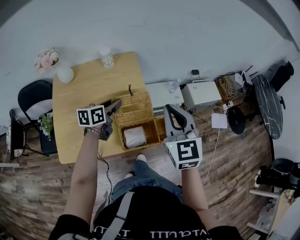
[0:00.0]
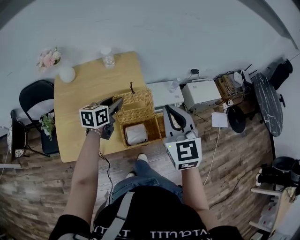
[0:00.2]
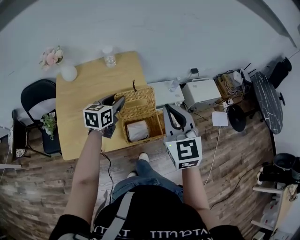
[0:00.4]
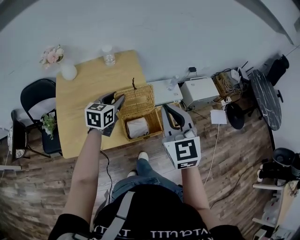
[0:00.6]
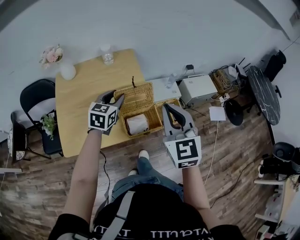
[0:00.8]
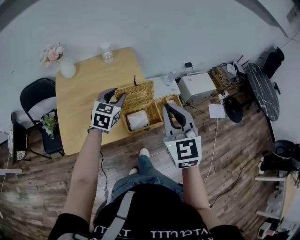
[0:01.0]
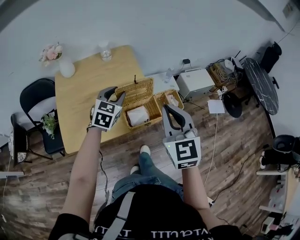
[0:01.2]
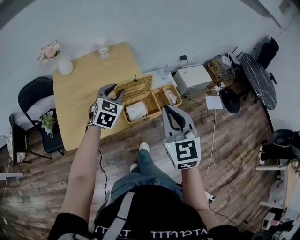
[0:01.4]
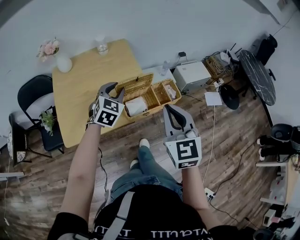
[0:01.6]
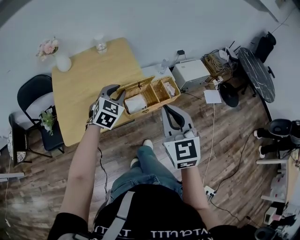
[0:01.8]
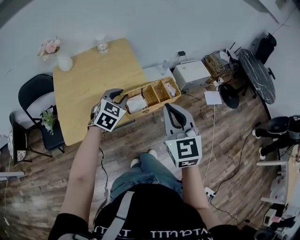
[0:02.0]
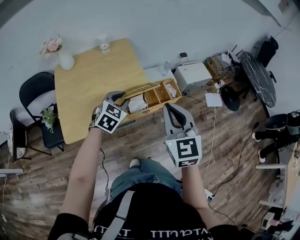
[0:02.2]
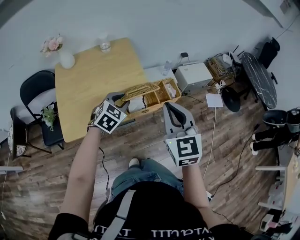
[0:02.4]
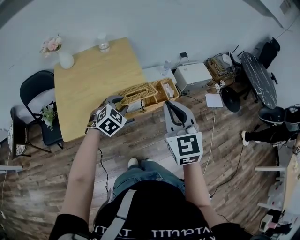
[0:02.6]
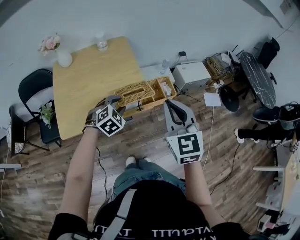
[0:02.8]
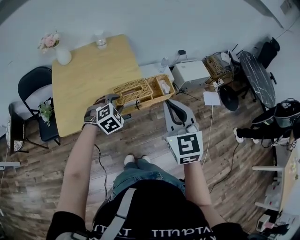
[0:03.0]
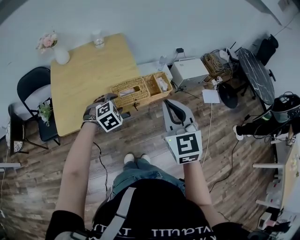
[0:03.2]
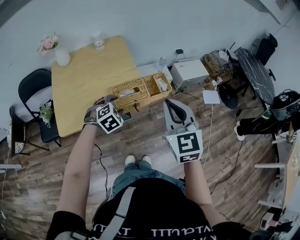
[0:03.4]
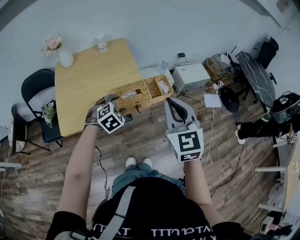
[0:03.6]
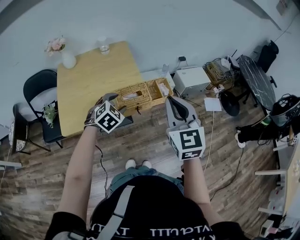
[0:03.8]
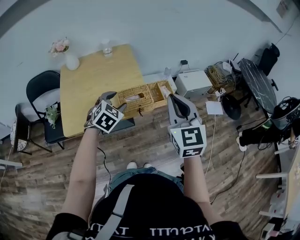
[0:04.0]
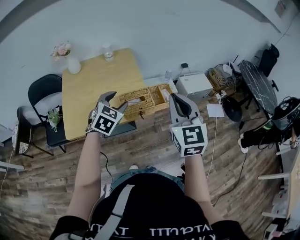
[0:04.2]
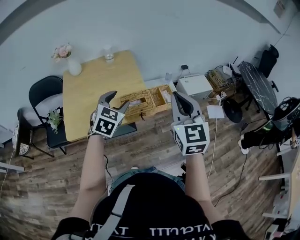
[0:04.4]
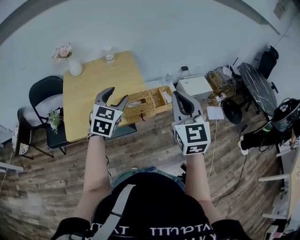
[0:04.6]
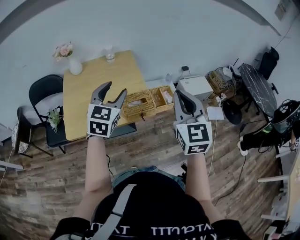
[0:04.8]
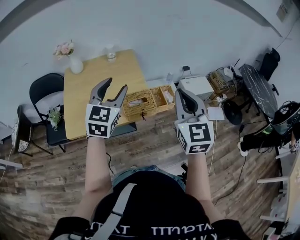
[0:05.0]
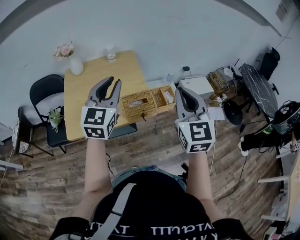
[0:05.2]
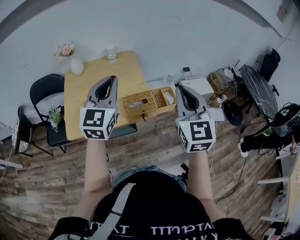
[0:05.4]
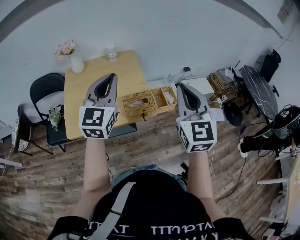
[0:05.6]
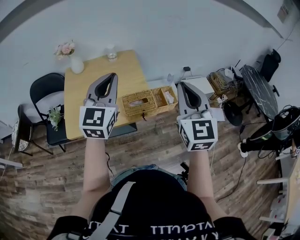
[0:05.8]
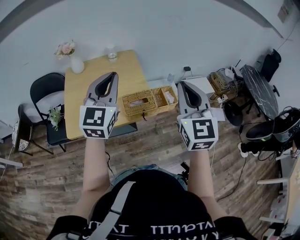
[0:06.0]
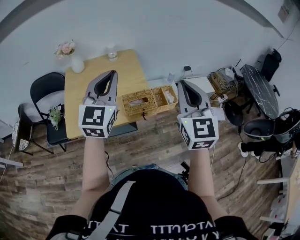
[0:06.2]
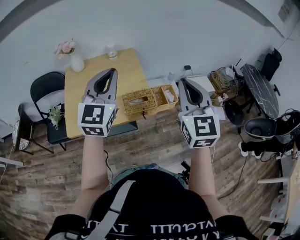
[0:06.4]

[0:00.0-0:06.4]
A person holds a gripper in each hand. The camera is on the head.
0.0 to 1.6 s: The left gripper heads backward and upward, covering about 15 cm, and rolls clockwise, seen from behind, by approximately 60 degrees; the right gripper heads backward, covering some 20 cm.
1.6 to 3.2 s: The right gripper shifts by some 5 cm. The left gripper goes about 15 cm downward, backward and to the right, and swivels approximately 40 degrees.
3.2 to 4.8 s: The left gripper shifts some 25 cm upward, and points its fingers roughly 40 degrees further upward. Meanwhile the right gripper moves upward, some 5 cm.
4.8 to 6.4 s: The left gripper moves upward, approximately 10 cm, and closes up.

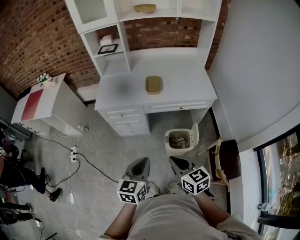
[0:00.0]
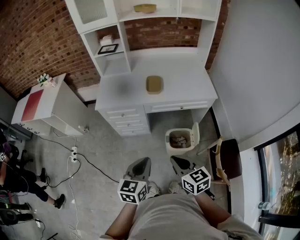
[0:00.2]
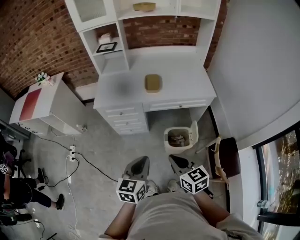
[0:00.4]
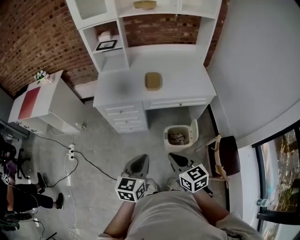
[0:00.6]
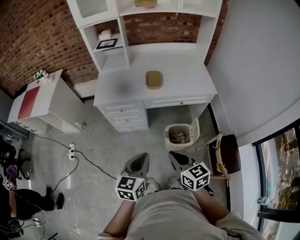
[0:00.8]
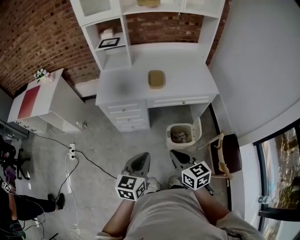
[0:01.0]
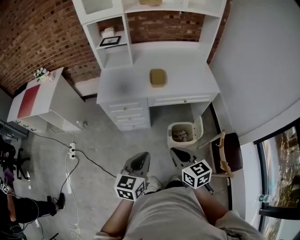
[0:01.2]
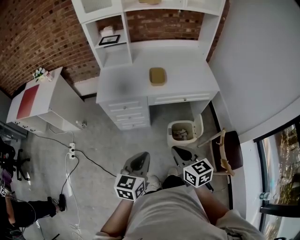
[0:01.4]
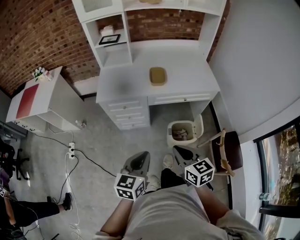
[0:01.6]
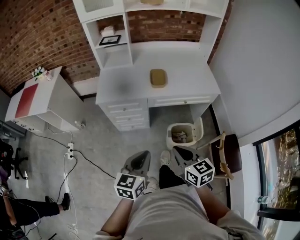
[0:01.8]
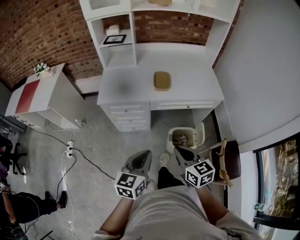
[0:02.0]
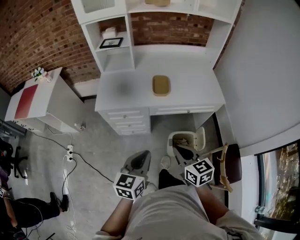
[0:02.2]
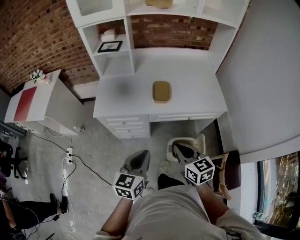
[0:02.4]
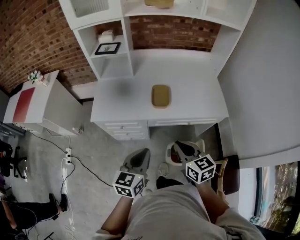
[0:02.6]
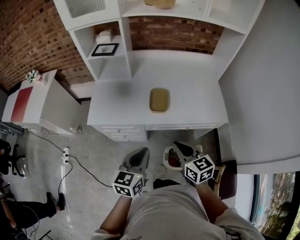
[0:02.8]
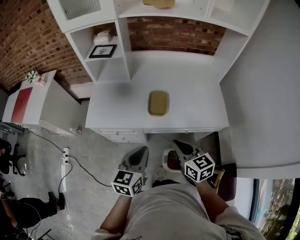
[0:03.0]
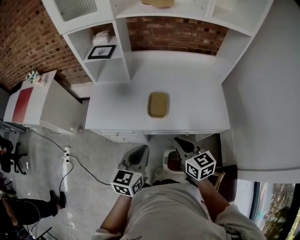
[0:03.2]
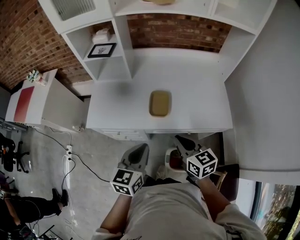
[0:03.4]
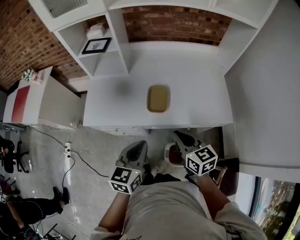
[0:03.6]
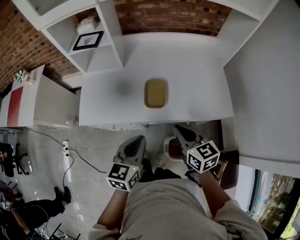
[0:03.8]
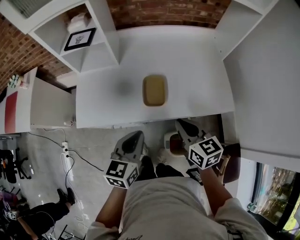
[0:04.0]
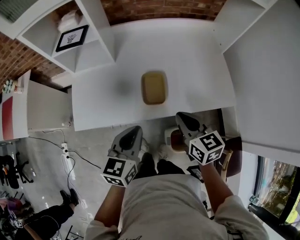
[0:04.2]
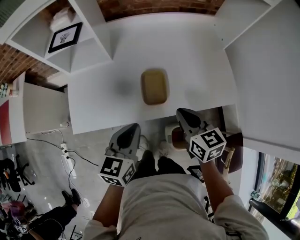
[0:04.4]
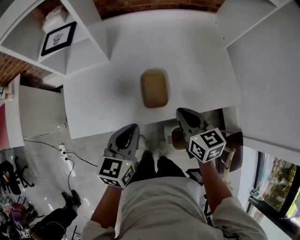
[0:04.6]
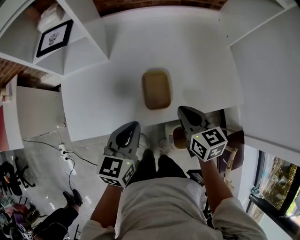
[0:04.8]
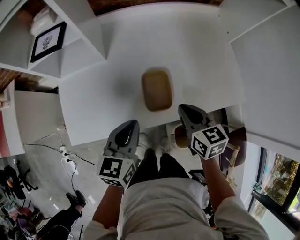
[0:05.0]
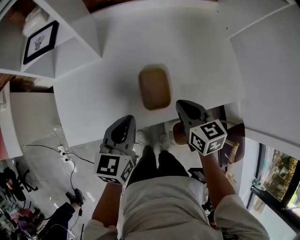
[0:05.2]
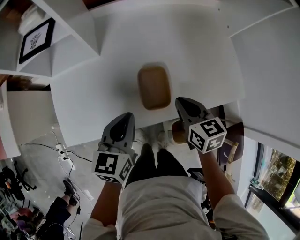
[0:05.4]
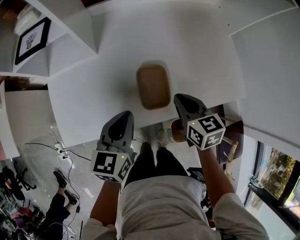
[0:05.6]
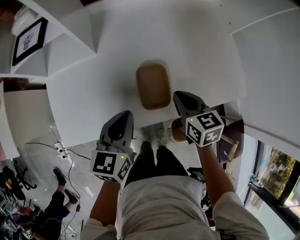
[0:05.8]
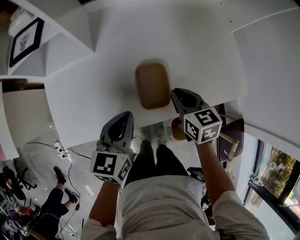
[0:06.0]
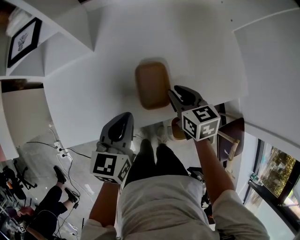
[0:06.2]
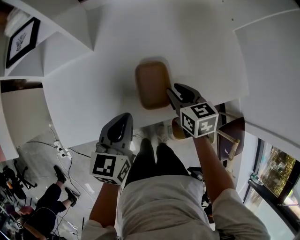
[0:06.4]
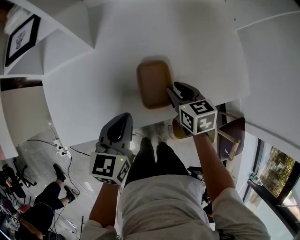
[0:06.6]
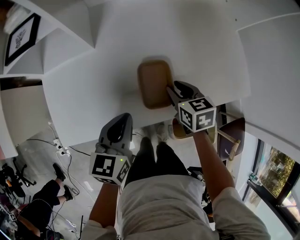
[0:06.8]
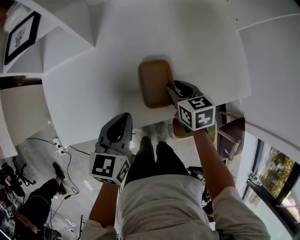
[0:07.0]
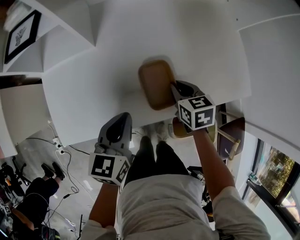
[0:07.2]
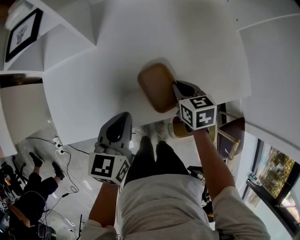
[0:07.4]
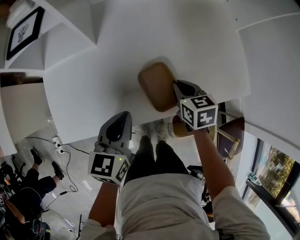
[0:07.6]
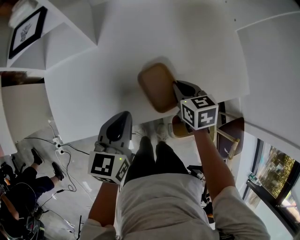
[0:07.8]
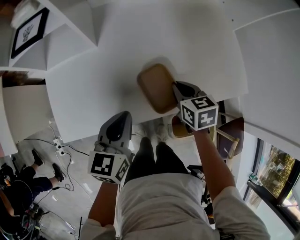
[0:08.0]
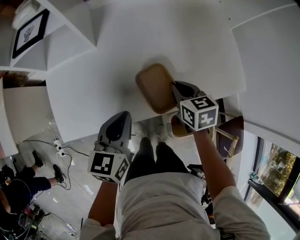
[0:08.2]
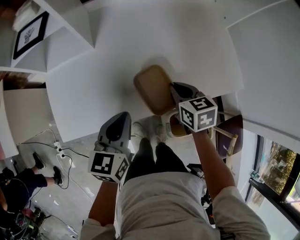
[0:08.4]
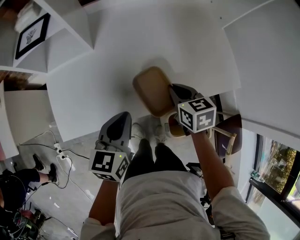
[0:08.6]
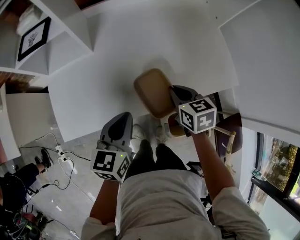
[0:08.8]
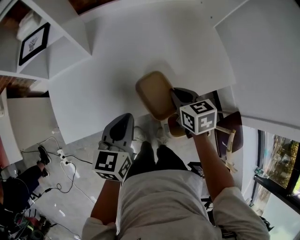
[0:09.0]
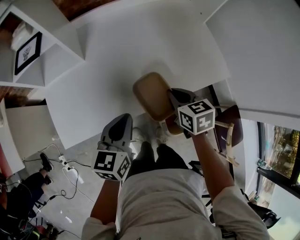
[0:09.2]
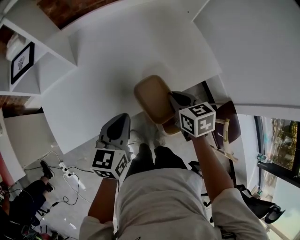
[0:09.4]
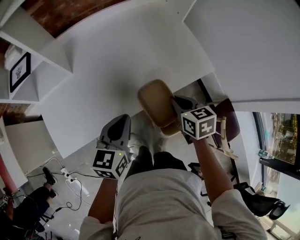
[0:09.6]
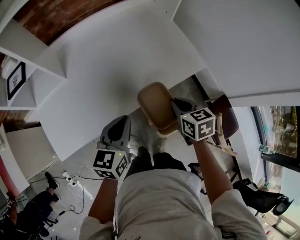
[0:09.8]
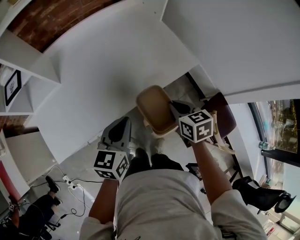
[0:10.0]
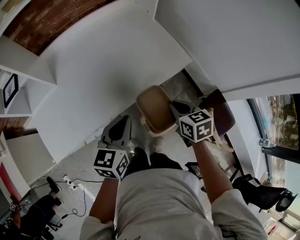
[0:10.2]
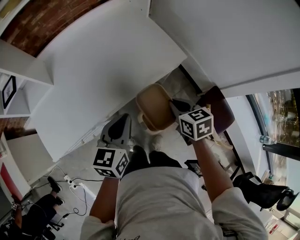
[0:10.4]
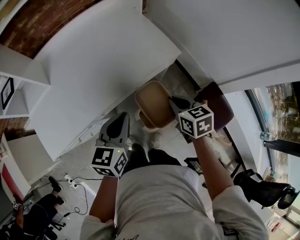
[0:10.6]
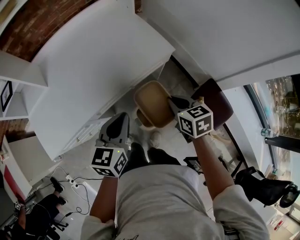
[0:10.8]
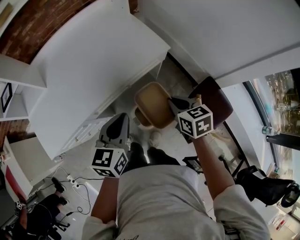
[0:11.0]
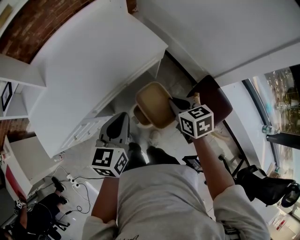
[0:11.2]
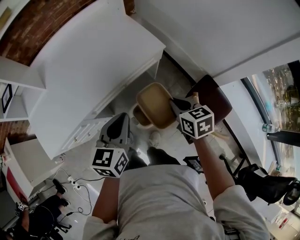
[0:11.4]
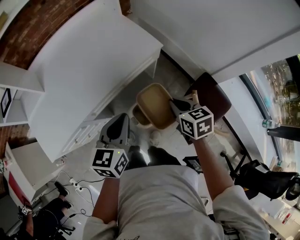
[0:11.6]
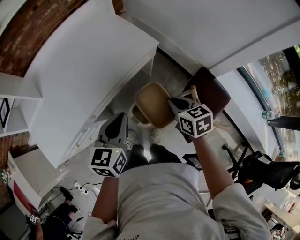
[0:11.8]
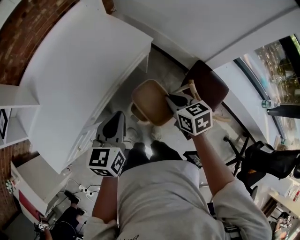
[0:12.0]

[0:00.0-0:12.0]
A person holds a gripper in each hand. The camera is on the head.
0.0 to 1.6 s: The left gripper travels to the left by about 5 cm. The right gripper ends up approximately 5 cm from where it was.
1.6 to 3.0 s: The grippers both shift forward by roughly 30 cm.
3.0 to 4.4 s: Both grippers move forward, some 15 cm.
4.4 to 6.0 s: The left gripper moves forward and downward, about 10 cm; the right gripper travels downward and forward by about 15 cm.
6.0 to 7.6 s: The right gripper opens and closes again.
7.6 to 9.0 s: The left gripper ends up roughly 5 cm from where it was. The right gripper shifts some 10 cm upward and backward.
9.0 to 10.4 s: The left gripper is displaced to the right by roughly 20 cm. Meanwhile the right gripper heads to the right and backward, covering roughly 25 cm.
10.4 to 12.0 s: The right gripper is displaced to the right and backward by about 10 cm, while the left gripper heads to the right, covering approximately 10 cm.

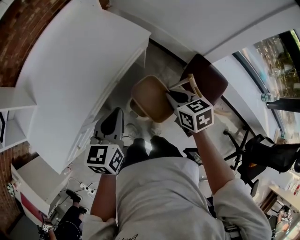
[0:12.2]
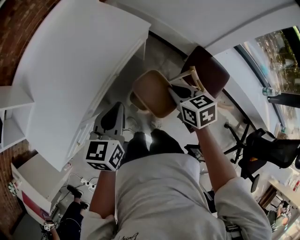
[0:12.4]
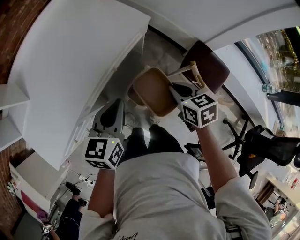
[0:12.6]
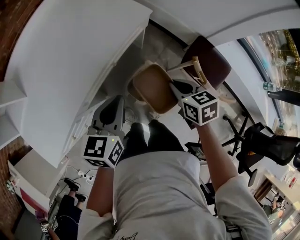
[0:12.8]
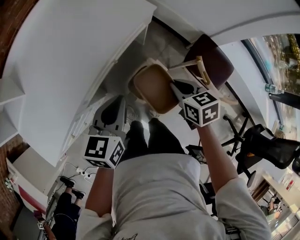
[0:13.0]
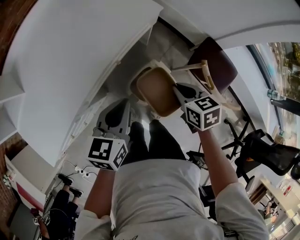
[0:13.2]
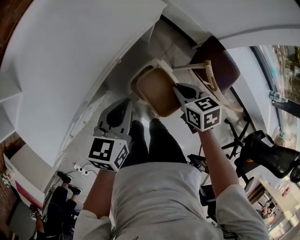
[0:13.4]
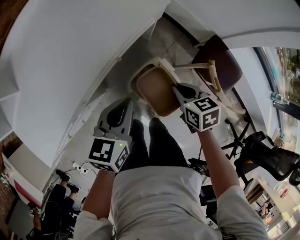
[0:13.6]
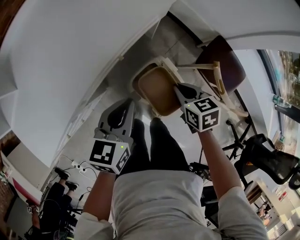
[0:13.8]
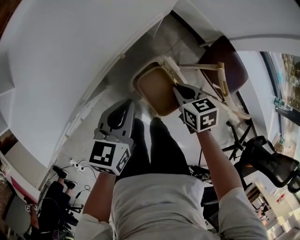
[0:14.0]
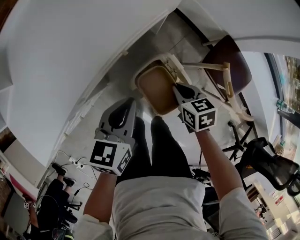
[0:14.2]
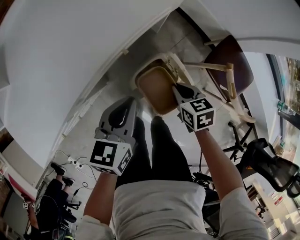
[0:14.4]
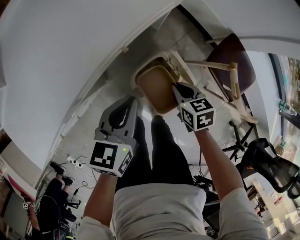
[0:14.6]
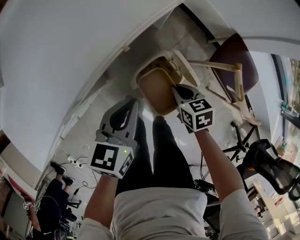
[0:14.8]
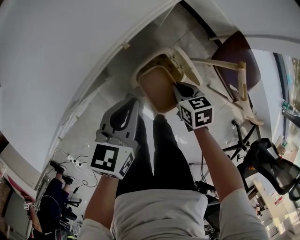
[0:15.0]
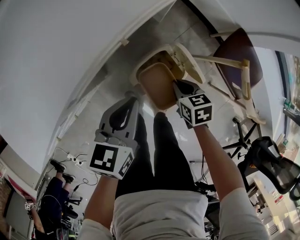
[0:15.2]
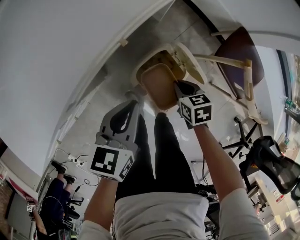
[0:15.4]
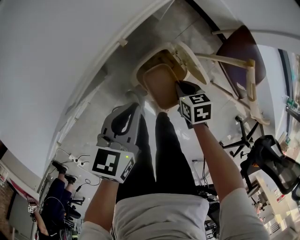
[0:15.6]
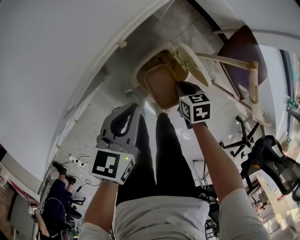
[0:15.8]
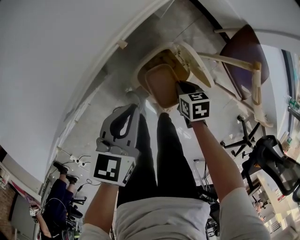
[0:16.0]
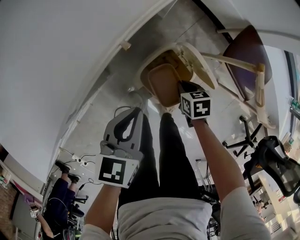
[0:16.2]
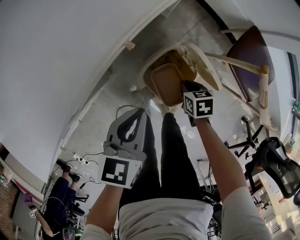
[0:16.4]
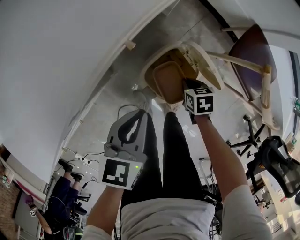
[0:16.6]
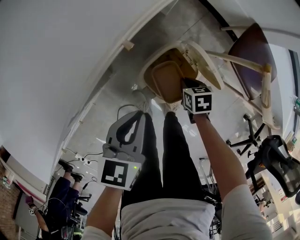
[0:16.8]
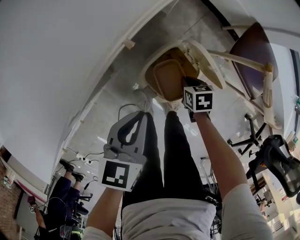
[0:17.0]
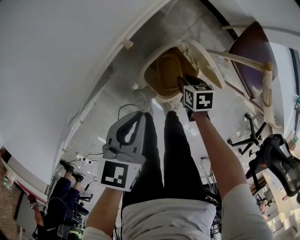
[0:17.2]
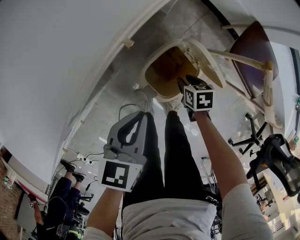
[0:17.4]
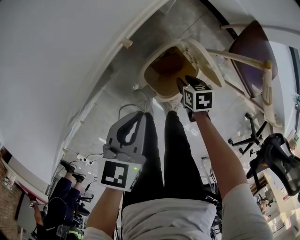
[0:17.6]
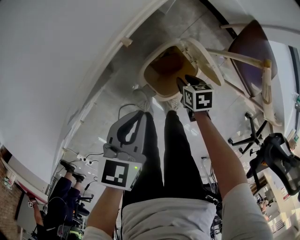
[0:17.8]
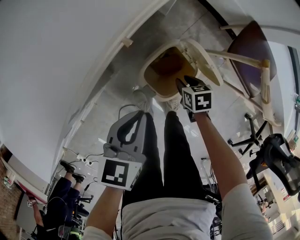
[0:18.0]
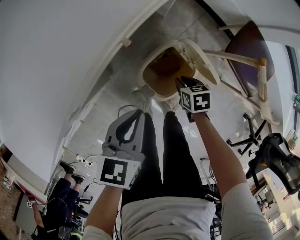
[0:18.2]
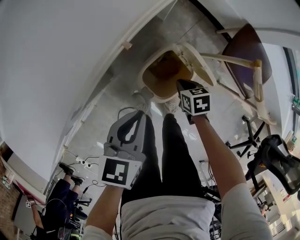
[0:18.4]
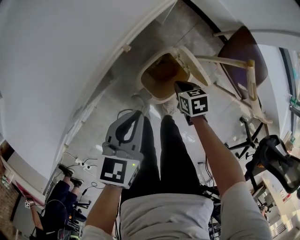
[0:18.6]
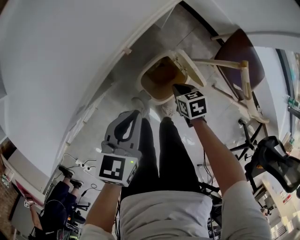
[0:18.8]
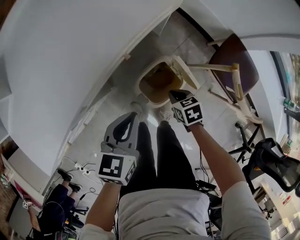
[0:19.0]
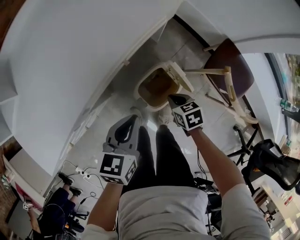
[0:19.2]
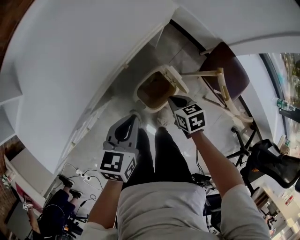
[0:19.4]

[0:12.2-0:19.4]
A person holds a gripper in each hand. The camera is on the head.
12.2 to 13.6 s: The two grippers go approximately 10 cm downward.
13.6 to 15.0 s: The grippers both shift downward by some 15 cm.
15.0 to 16.6 s: The right gripper goes roughly 15 cm downward, while the left gripper shifts roughly 5 cm downward.
16.6 to 18.0 s: The right gripper opens its fingers.
18.0 to 19.4 s: The right gripper shifts about 20 cm upward, and closes its fingers, while the left gripper heads upward, covering approximately 15 cm.
